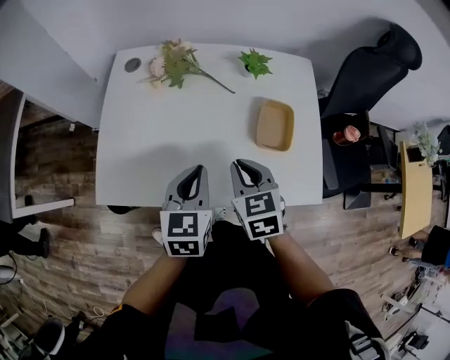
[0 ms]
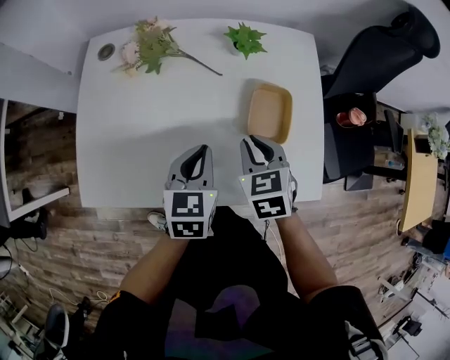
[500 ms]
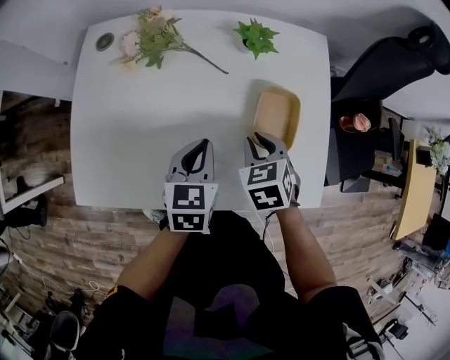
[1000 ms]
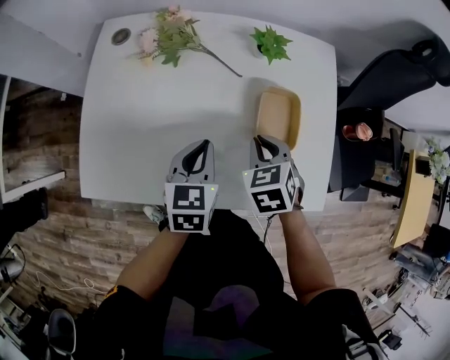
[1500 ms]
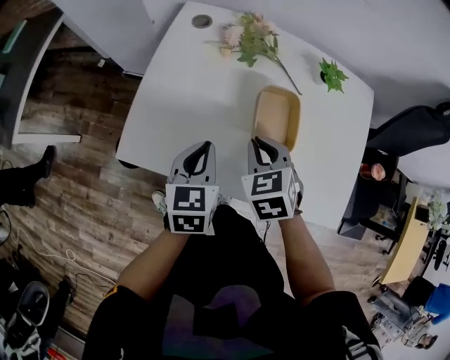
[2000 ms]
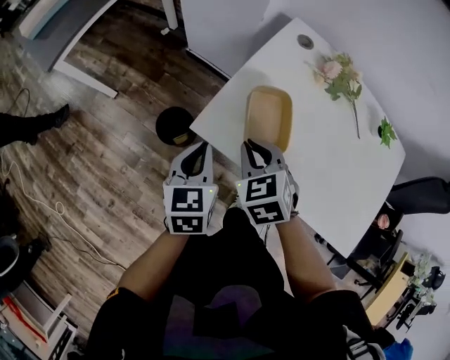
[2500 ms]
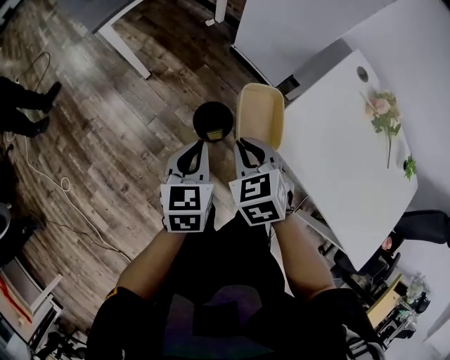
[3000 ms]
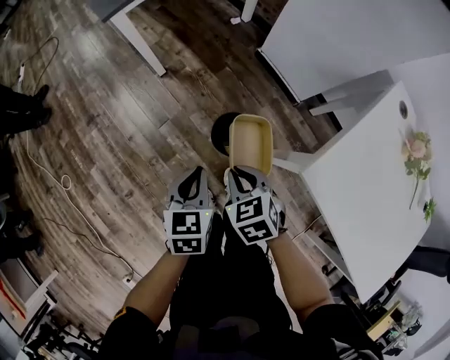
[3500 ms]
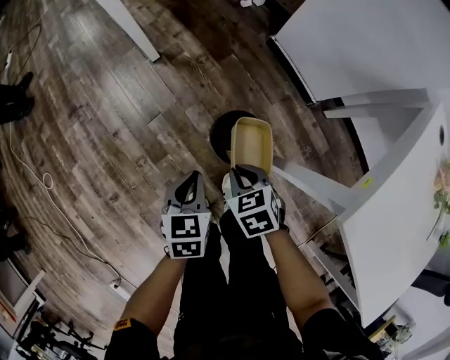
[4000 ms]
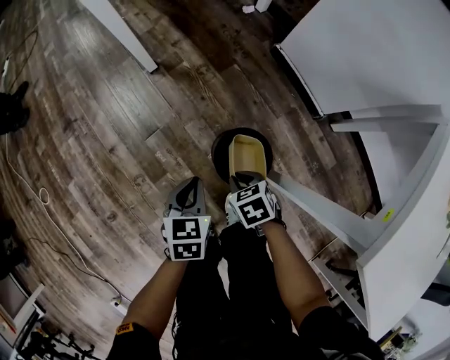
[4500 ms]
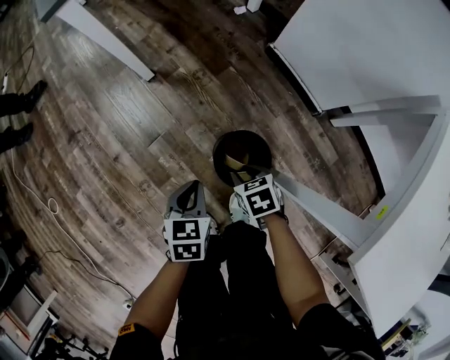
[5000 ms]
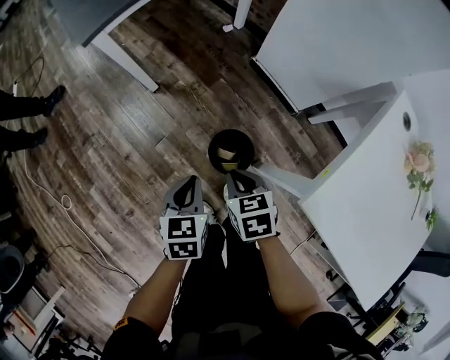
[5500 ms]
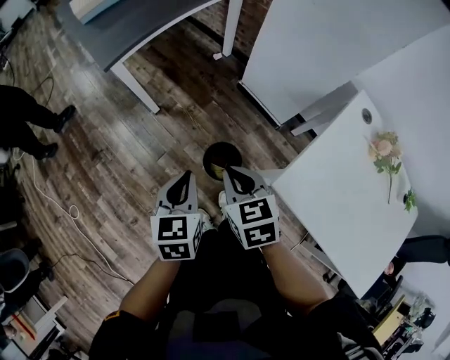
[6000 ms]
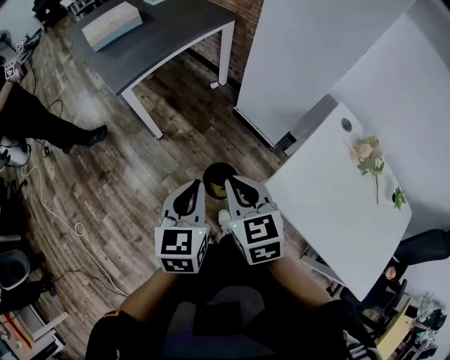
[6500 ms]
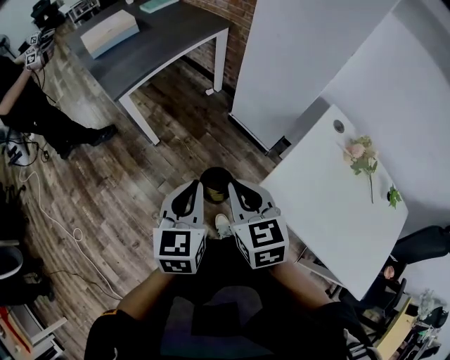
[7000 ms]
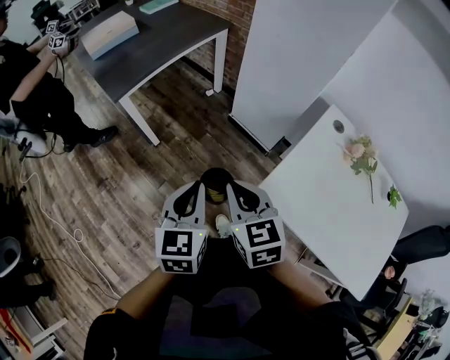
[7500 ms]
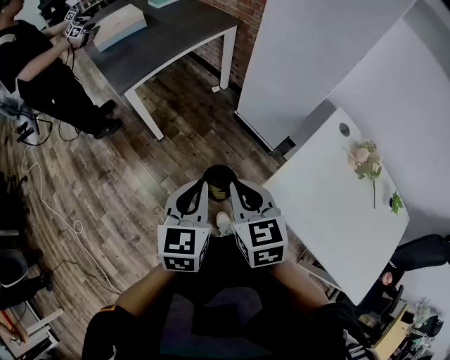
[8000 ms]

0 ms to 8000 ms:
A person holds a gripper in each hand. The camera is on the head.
0 ms to 2000 ms: The grippers both shift to the left by roughly 10 cm. The right gripper rotates roughly 20 degrees.
2000 ms to 4000 ms: The pair of grippers is taken roughly 60 cm. The left gripper swivels some 40 degrees. The right gripper rotates some 40 degrees.
4000 ms to 6000 ms: The grippers both shift upward by some 35 cm. The right gripper swivels approximately 20 degrees, and opens and closes again.
6000 ms to 8000 ms: The right gripper shifts approximately 15 cm upward and backward. Meanwhile the left gripper goes some 15 cm upward and to the right.

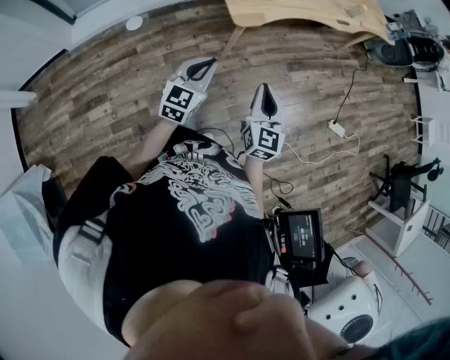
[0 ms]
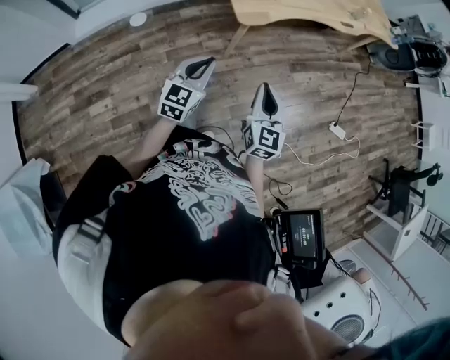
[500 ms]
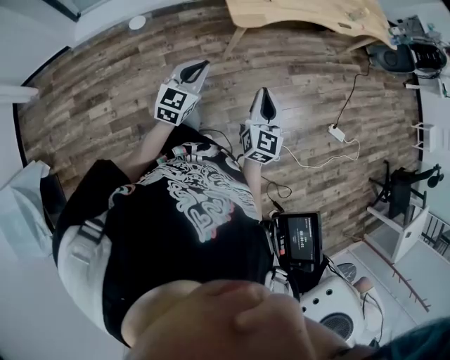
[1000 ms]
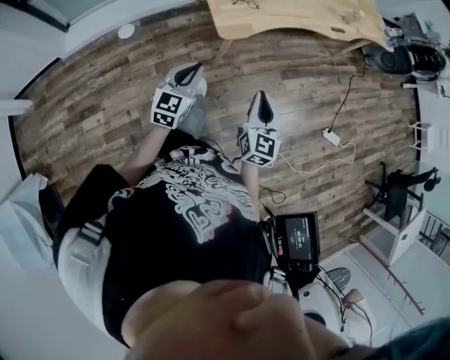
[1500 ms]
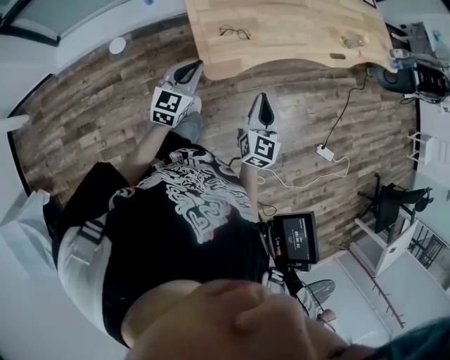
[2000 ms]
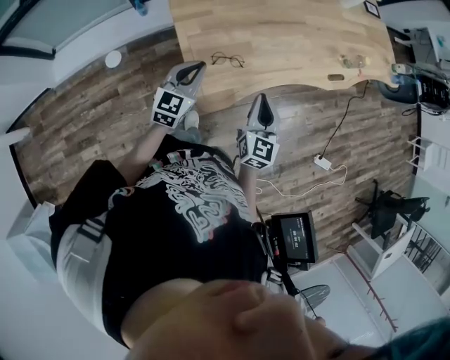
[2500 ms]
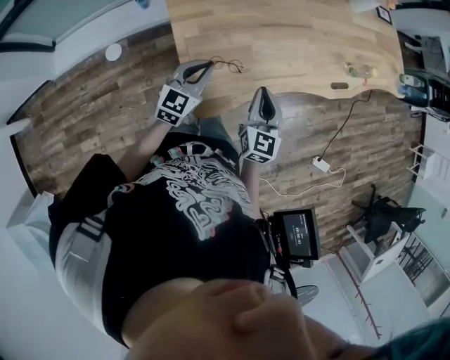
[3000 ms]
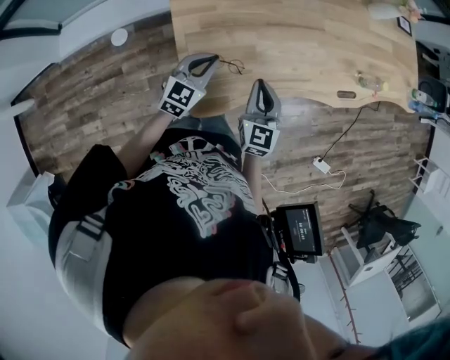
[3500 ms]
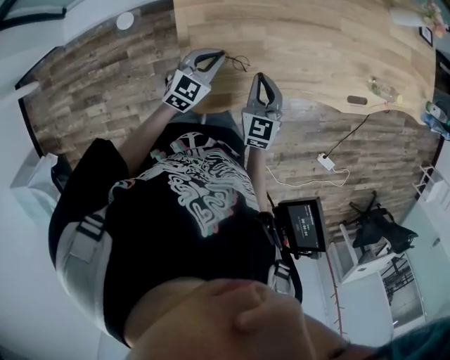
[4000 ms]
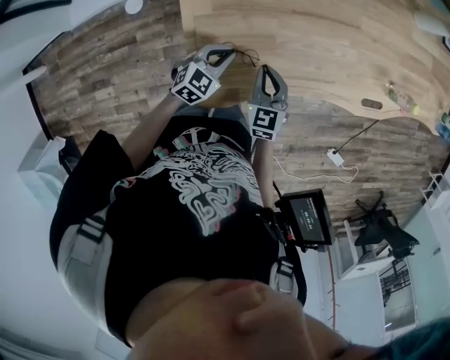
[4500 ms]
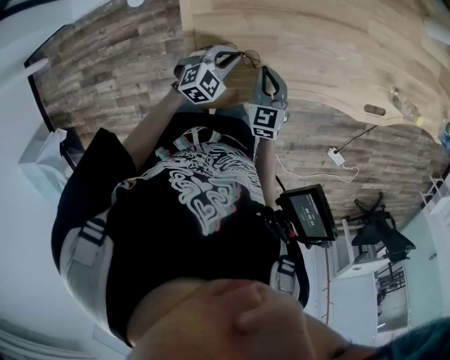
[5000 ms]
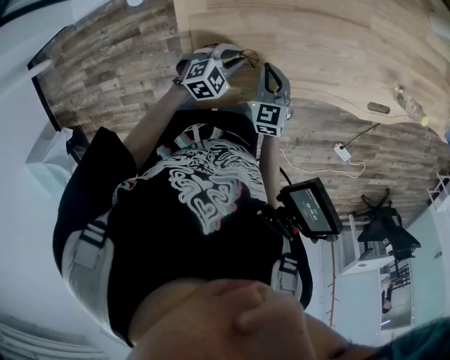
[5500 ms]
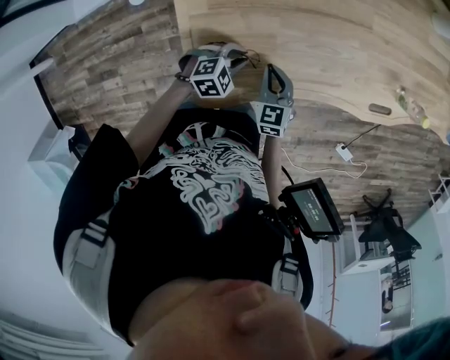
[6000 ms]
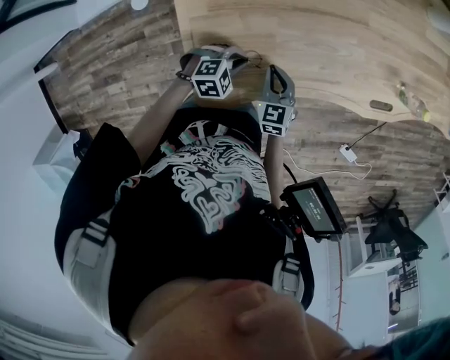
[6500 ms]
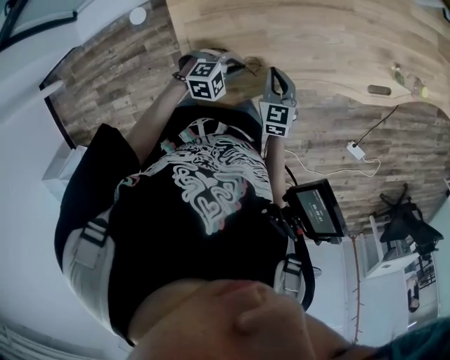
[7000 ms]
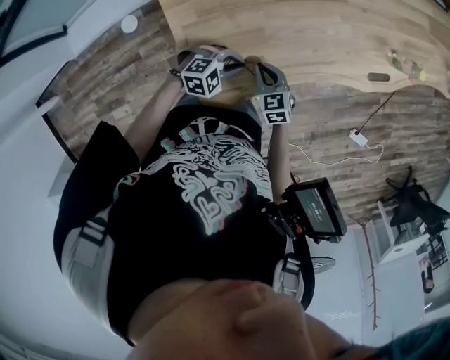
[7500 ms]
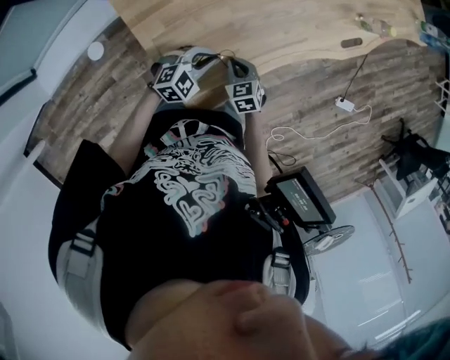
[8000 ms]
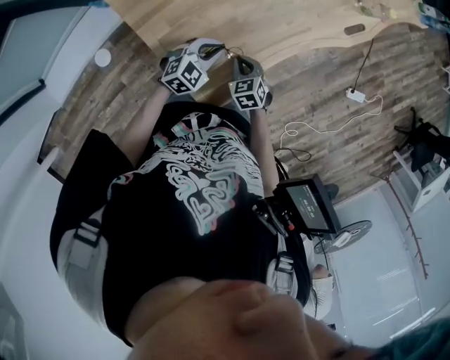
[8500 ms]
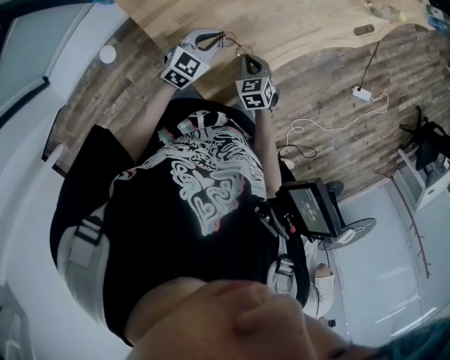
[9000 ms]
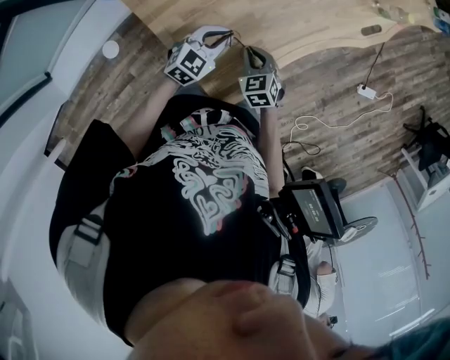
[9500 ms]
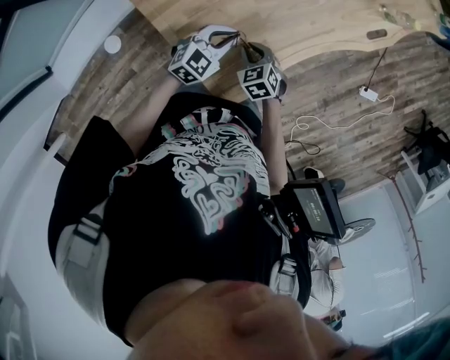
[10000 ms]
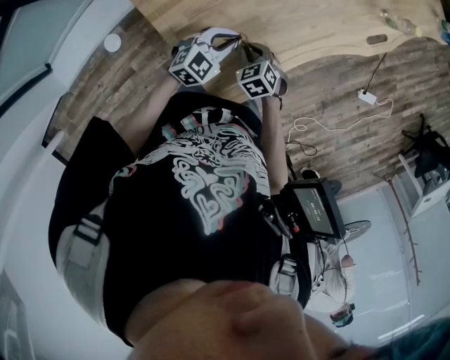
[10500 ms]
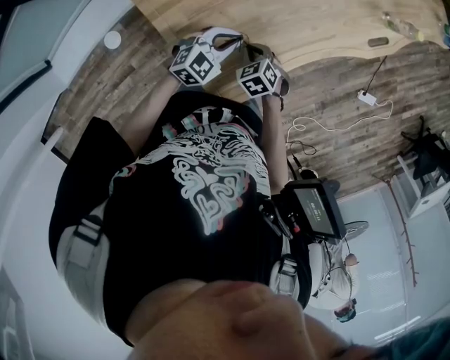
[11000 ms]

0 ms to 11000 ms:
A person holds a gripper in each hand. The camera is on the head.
0 ms to 2000 ms: Both grippers travel together forward, some 40 cm.
2000 ms to 3500 ms: The grippers both shift forward by roughly 30 cm.
3500 ms to 5500 ms: The left gripper goes some 20 cm downward, and swivels roughly 40 degrees, while the right gripper moves downward and forward, approximately 20 cm, and rotates roughly 20 degrees.
5500 ms to 7500 ms: The right gripper changes place by roughly 5 cm, while the left gripper moves approximately 10 cm, and changes its angle by about 30 degrees.
7500 ms to 9000 ms: The left gripper shifts by roughly 10 cm, and swivels about 30 degrees, while the right gripper swivels about 30 degrees.
9000 ms to 11000 ms: The right gripper travels to the left by roughly 5 cm.

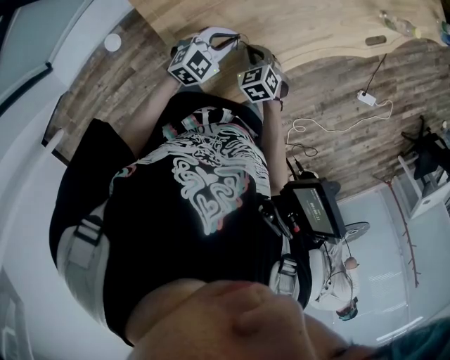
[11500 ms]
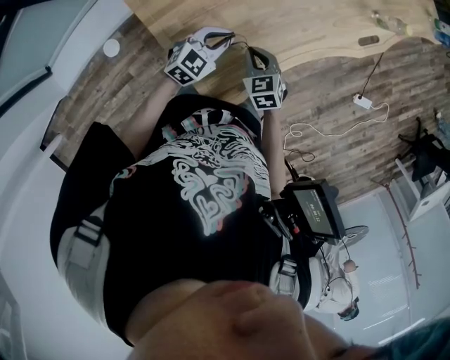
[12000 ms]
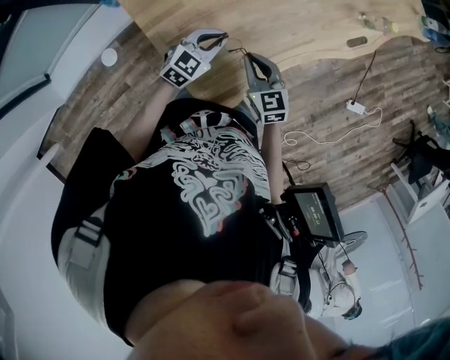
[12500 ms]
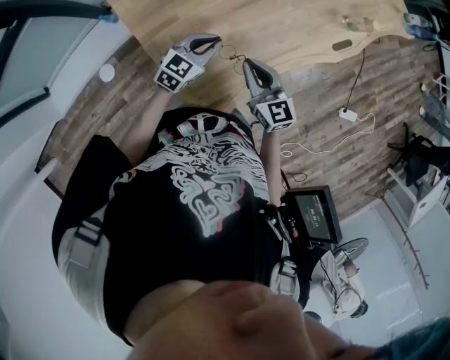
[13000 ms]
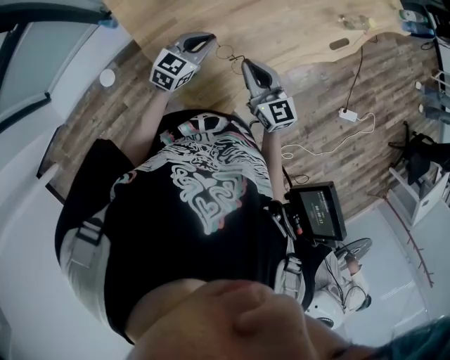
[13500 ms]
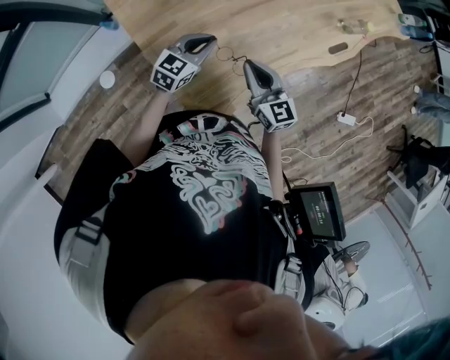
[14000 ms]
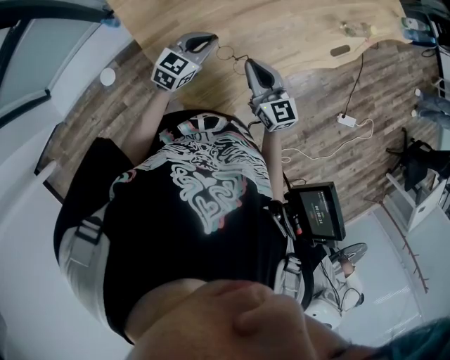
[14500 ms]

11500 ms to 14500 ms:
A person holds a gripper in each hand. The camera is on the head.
11500 ms to 13000 ms: The left gripper shifts approximately 10 cm upward; the right gripper travels upward by approximately 20 cm, and tips its fingers upward by about 50 degrees.
13000 ms to 14500 ms: The grippers stay close to where they were, moving slightly.

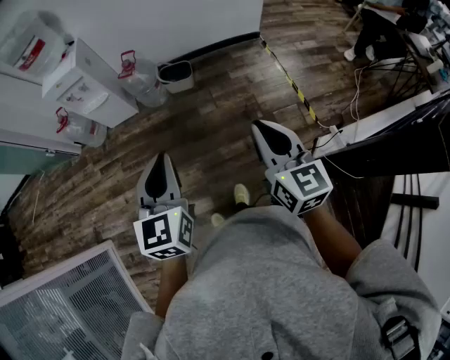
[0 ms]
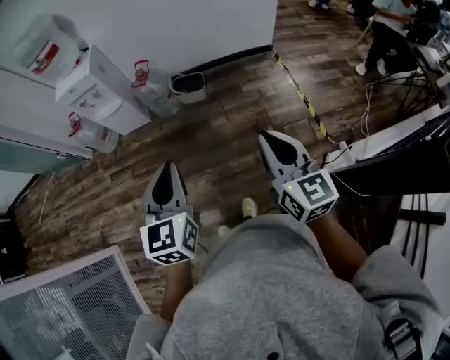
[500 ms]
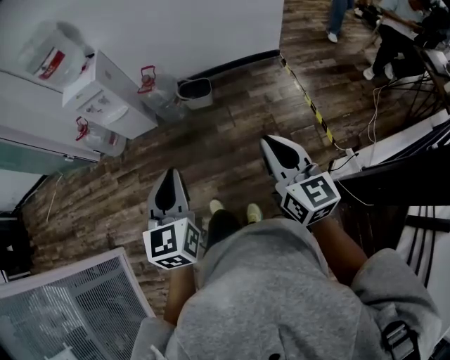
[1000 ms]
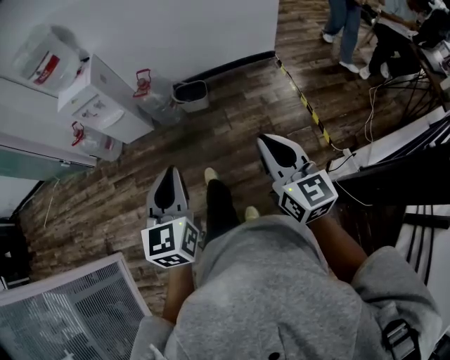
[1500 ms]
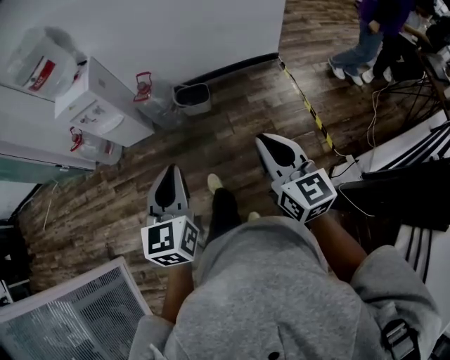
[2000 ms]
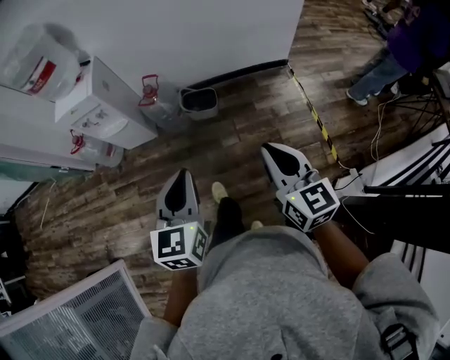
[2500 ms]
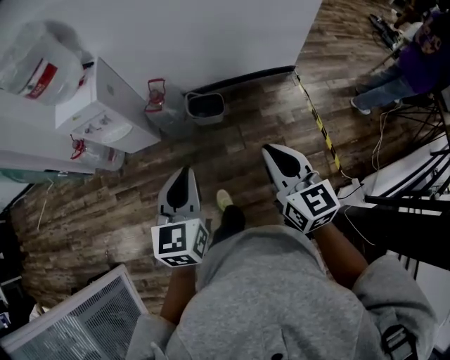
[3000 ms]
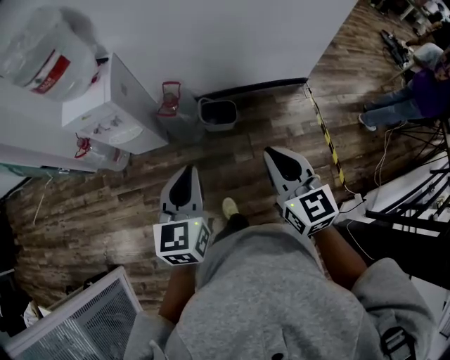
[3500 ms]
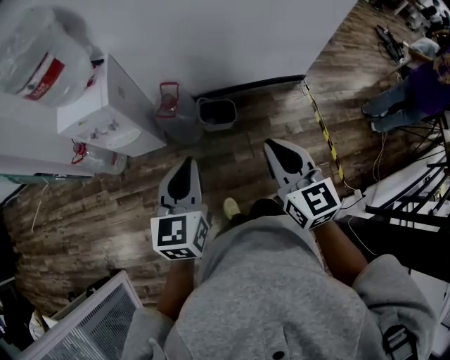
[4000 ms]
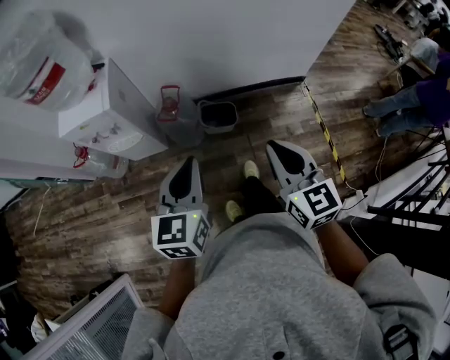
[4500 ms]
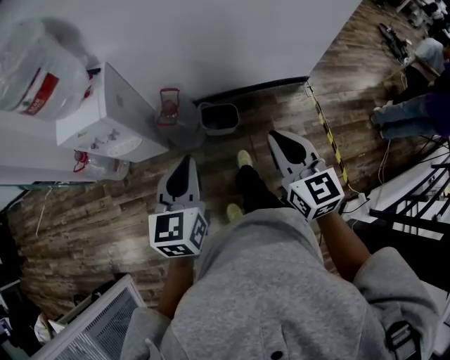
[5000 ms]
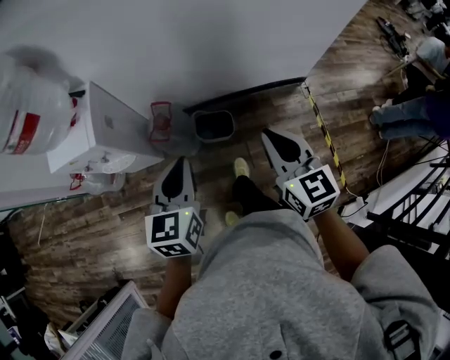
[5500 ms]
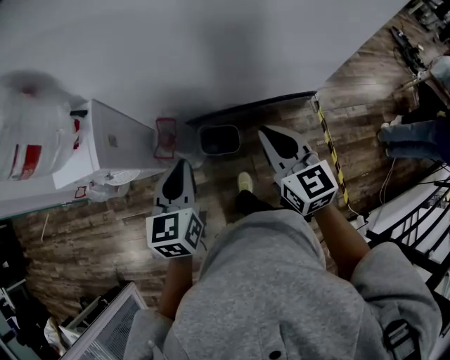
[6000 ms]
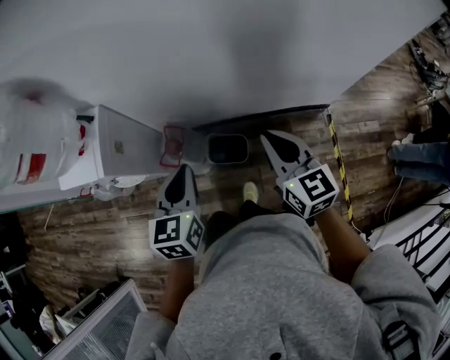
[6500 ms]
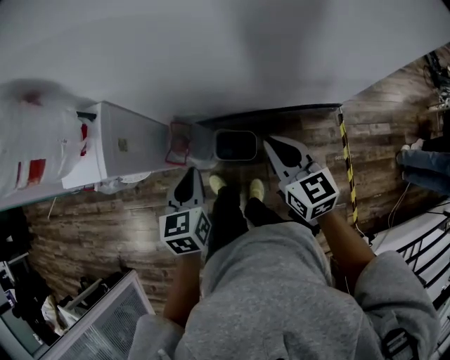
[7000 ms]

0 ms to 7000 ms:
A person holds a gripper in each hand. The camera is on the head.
0 ms to 2000 ms: The two grippers go approximately 10 cm forward.
2000 ms to 3500 ms: Both grippers move forward and to the left, approximately 30 cm.
3500 ms to 5000 ms: The two grippers go roughly 10 cm forward.
5000 ms to 7000 ms: The left gripper moves forward and downward, roughly 30 cm, and swivels about 20 degrees, while the right gripper shifts roughly 30 cm forward.
